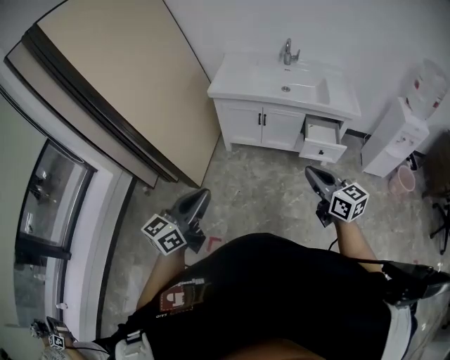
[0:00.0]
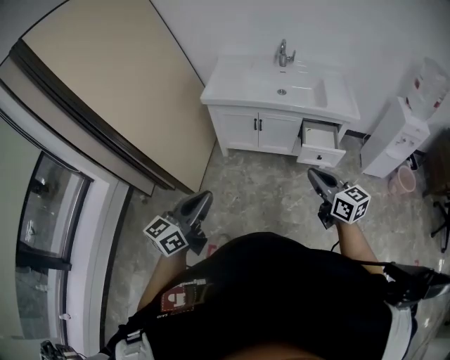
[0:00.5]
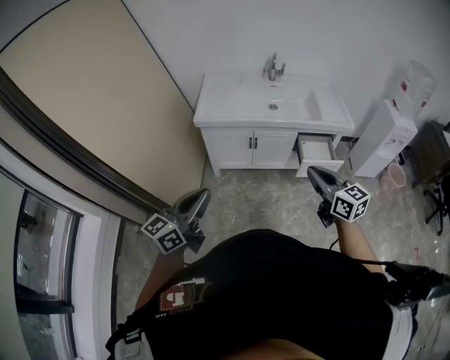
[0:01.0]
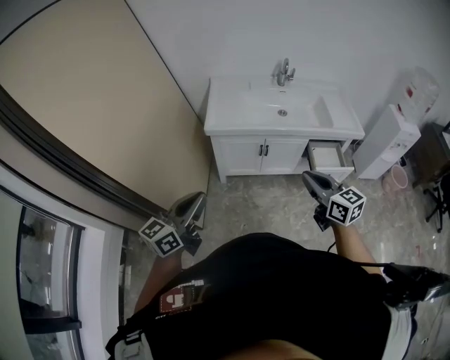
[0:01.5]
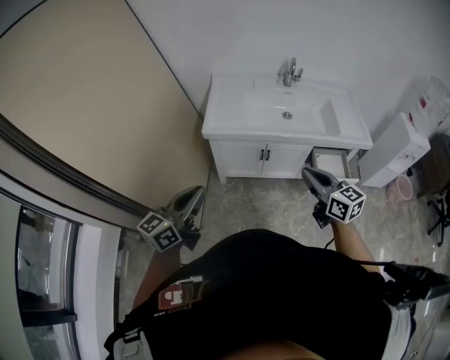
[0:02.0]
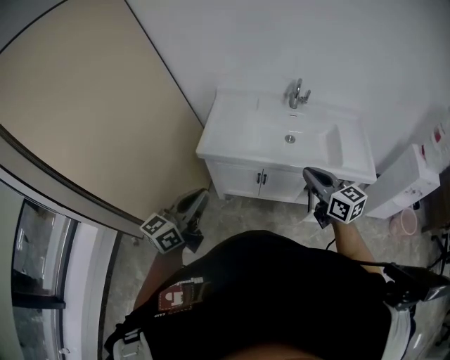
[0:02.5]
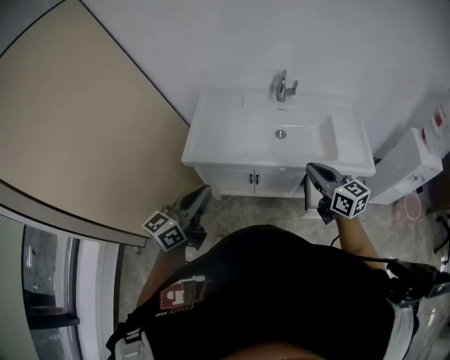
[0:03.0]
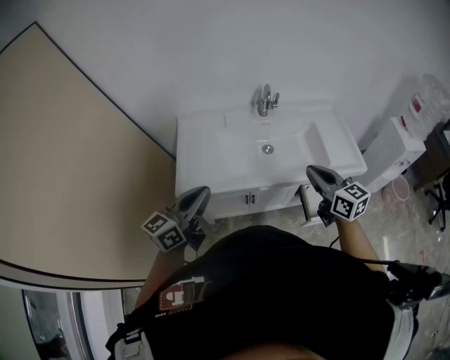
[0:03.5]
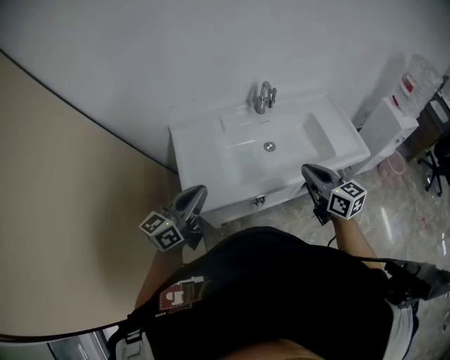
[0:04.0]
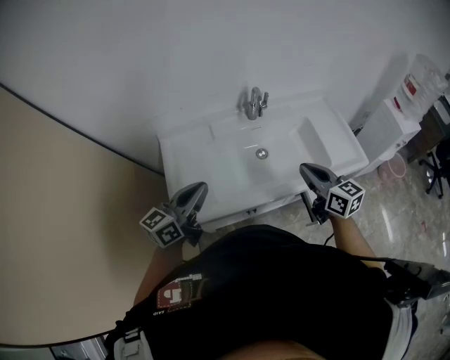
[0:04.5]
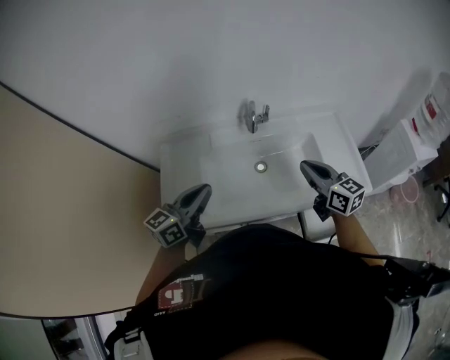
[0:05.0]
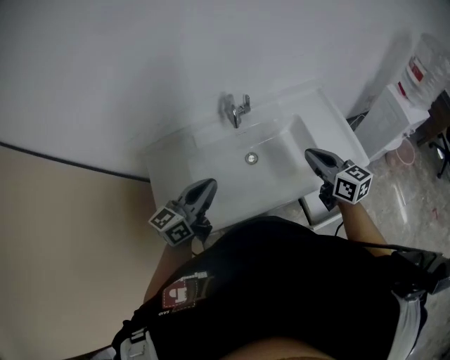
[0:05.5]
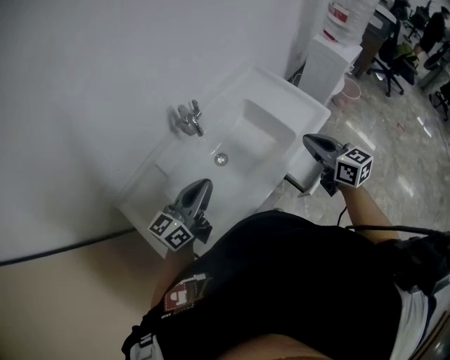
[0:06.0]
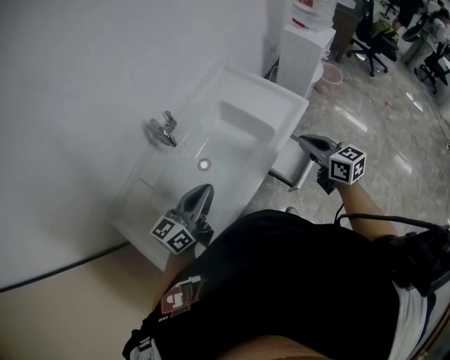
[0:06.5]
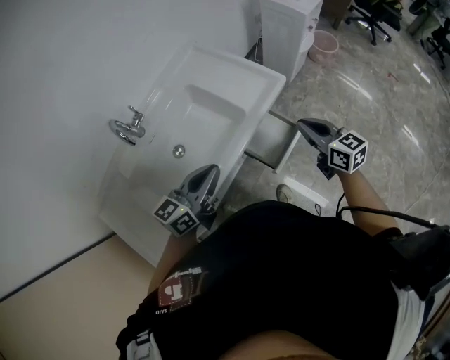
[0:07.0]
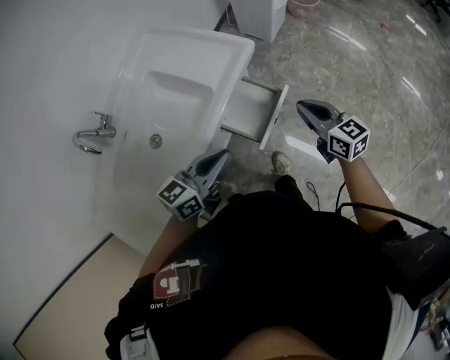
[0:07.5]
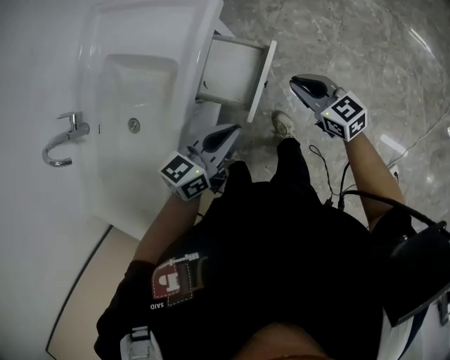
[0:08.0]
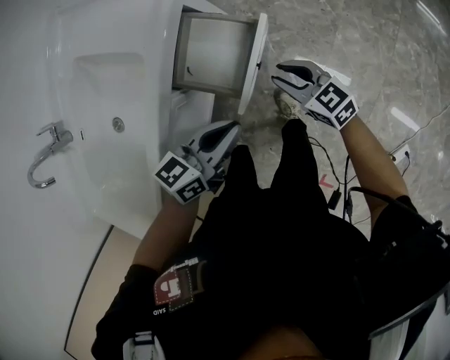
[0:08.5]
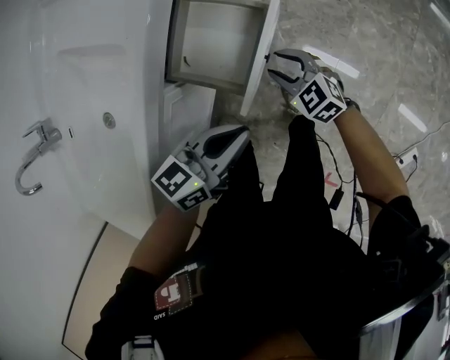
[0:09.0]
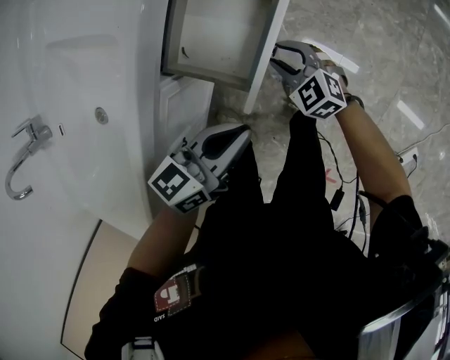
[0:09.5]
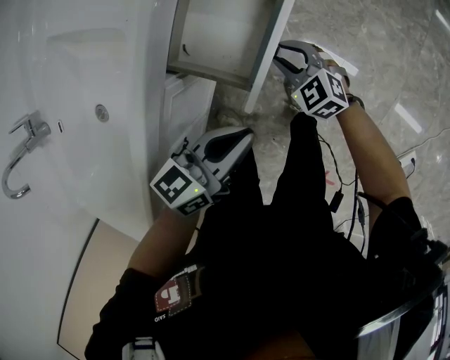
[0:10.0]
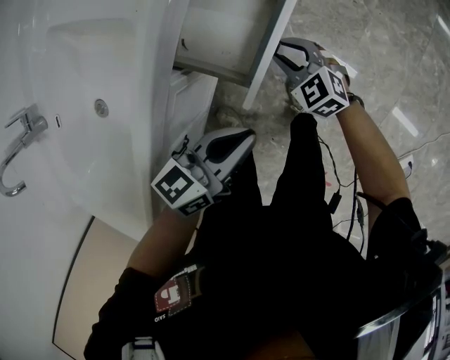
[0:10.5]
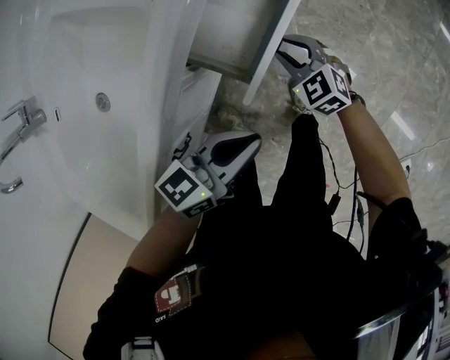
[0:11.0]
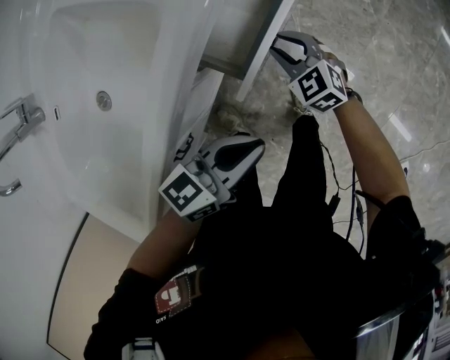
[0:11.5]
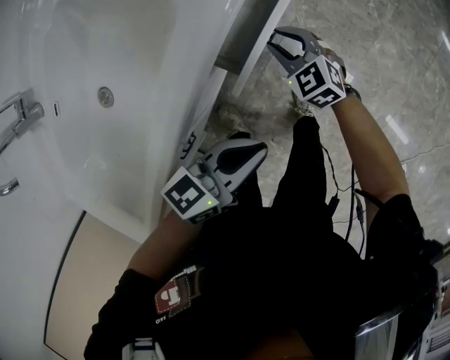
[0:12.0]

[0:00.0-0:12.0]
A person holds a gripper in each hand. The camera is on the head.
0:00.0 to 0:02.0: Both grippers travel together forward and to the left, roughly 35 cm.
0:02.0 to 0:04.0: The left gripper changes place by about 40 cm, and swivels about 20 degrees. The right gripper ends up about 35 cm from where it was.
0:04.0 to 0:06.0: The right gripper shifts by approximately 25 cm, and changes its angle by about 30 degrees. The left gripper moves roughly 30 cm, and changes its angle by about 30 degrees.
0:06.0 to 0:08.0: Both grippers travel together to the right and downward, some 50 cm. The left gripper swivels approximately 40 degrees.
0:08.0 to 0:10.0: The right gripper is displaced downward by some 25 cm, changes its angle by about 30 degrees, and opens; the left gripper shifts approximately 15 cm downward.
0:10.0 to 0:12.0: The left gripper goes some 5 cm to the left, while the right gripper moves to the left, approximately 10 cm.

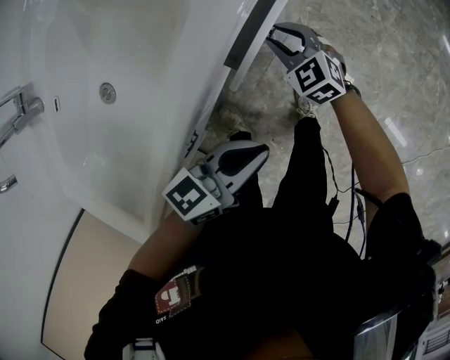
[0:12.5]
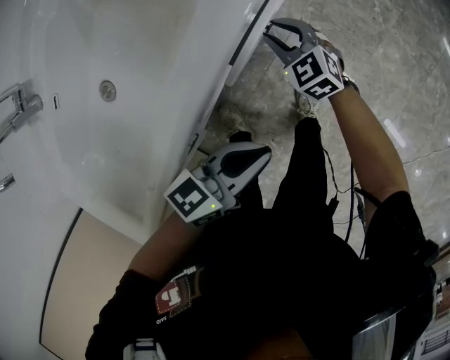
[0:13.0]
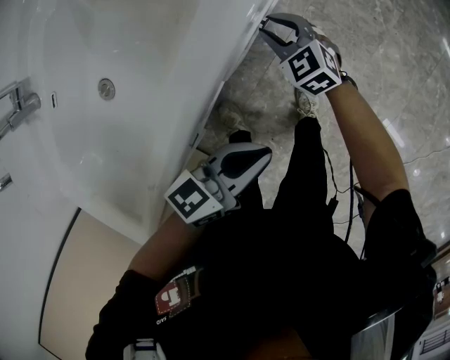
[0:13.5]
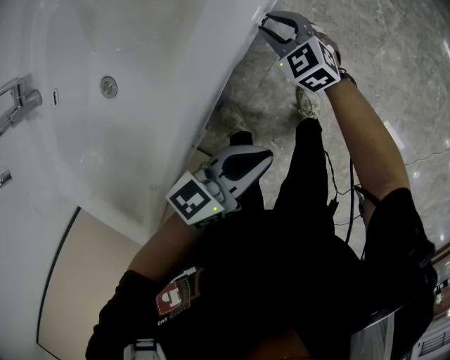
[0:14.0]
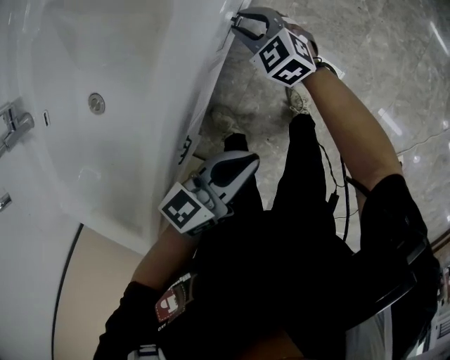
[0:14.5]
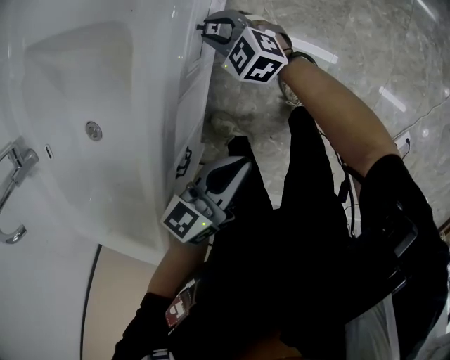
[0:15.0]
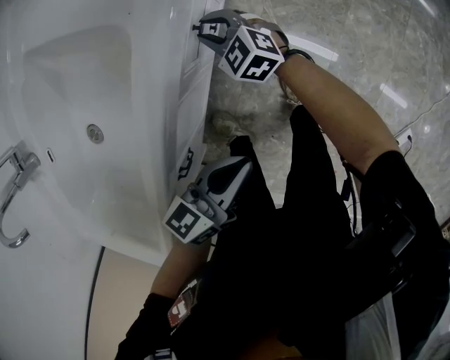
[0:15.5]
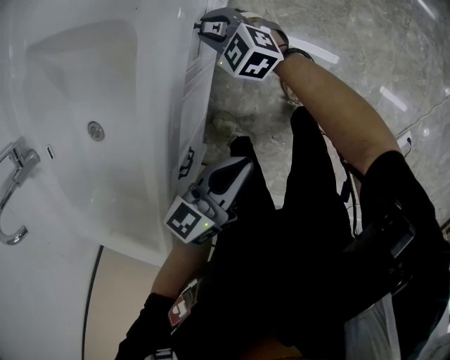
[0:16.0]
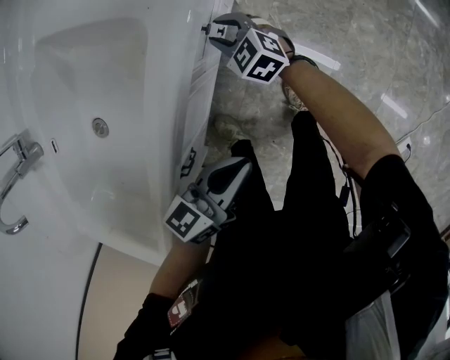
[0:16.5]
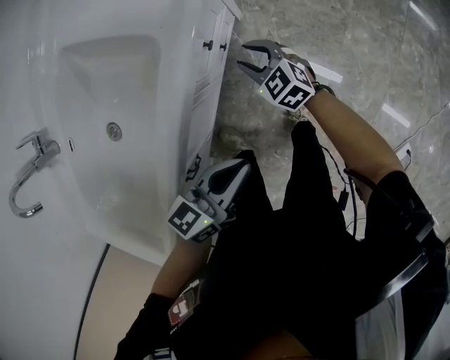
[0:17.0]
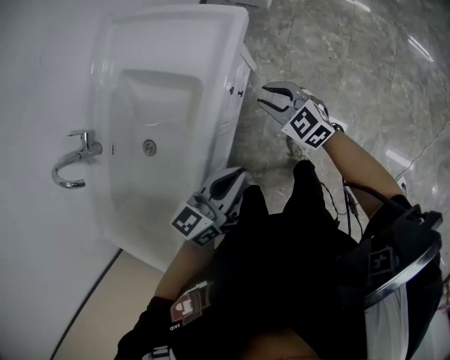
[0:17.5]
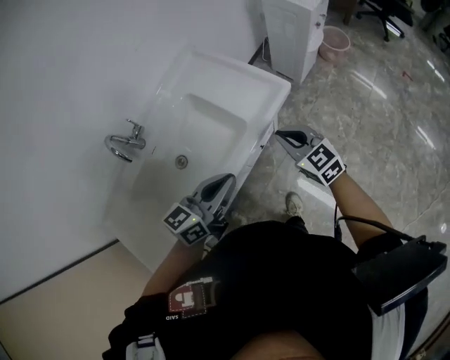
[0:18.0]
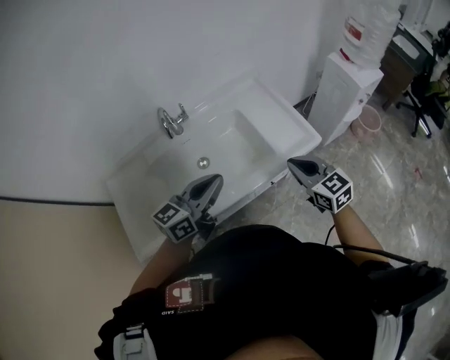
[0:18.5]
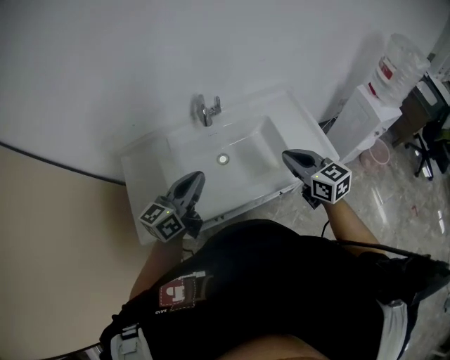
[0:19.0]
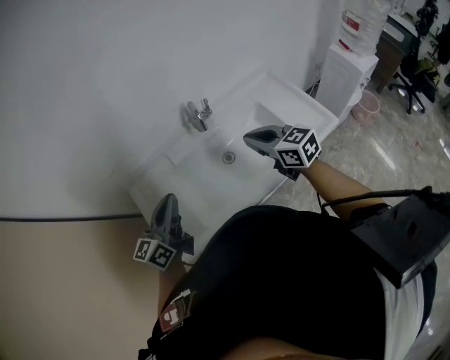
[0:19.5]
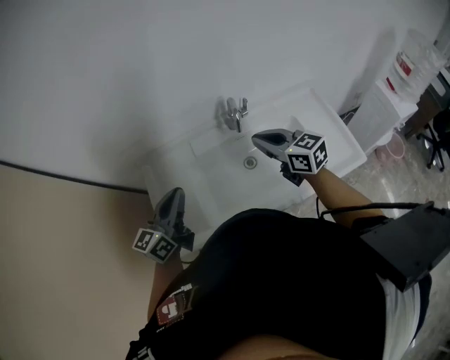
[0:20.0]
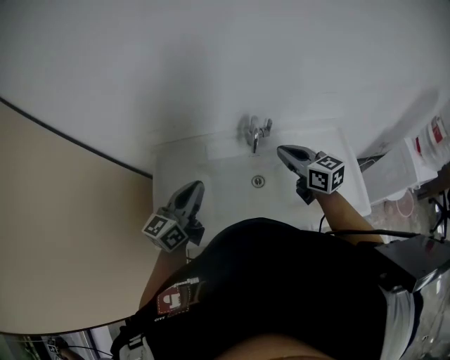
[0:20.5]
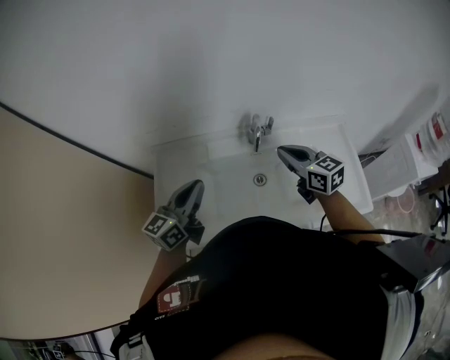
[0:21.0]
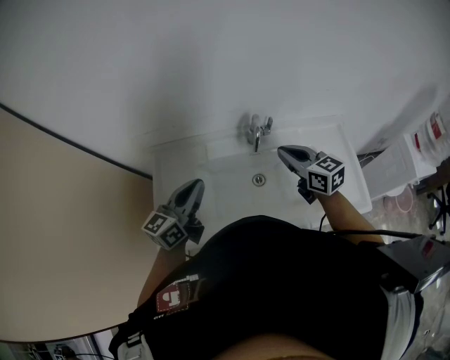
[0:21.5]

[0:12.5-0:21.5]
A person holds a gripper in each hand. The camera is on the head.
0:12.5 to 0:14.5: The right gripper moves some 5 cm.
0:14.5 to 0:17.0: The right gripper shifts roughly 5 cm to the right.
0:17.0 to 0:19.5: The right gripper travels upward by approximately 50 cm, swivels about 40 degrees, and closes its fingers. The left gripper changes place by some 60 cm, and turns by roughly 70 degrees.
0:19.5 to 0:21.5: The left gripper heads forward, covering some 5 cm. Meanwhile the right gripper goes some 15 cm forward.

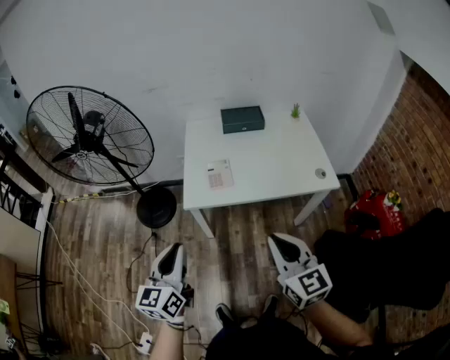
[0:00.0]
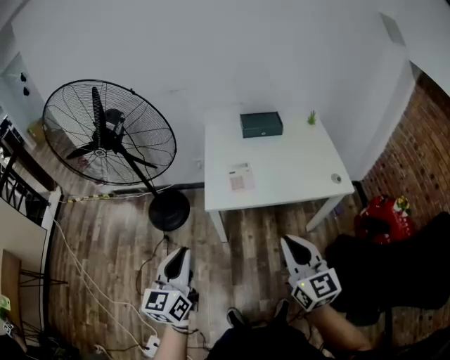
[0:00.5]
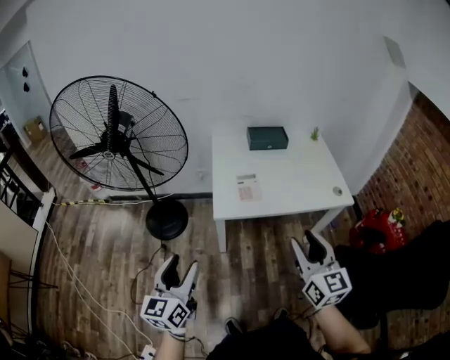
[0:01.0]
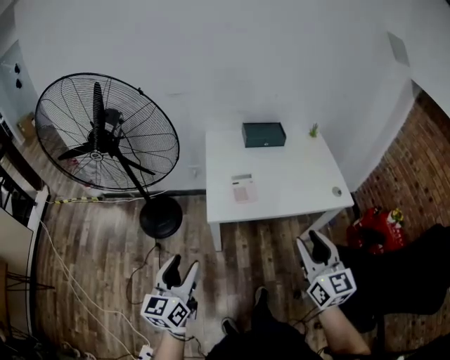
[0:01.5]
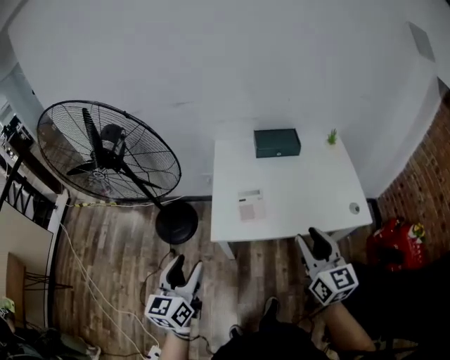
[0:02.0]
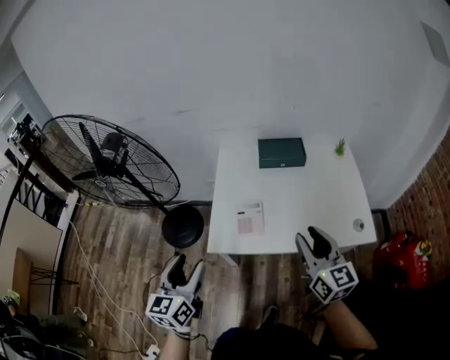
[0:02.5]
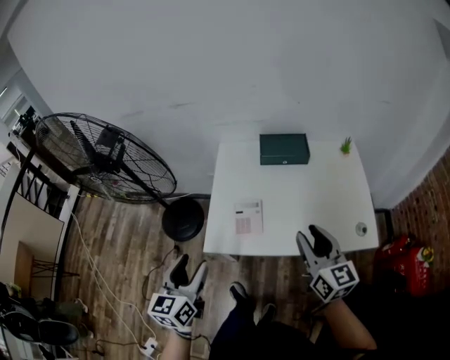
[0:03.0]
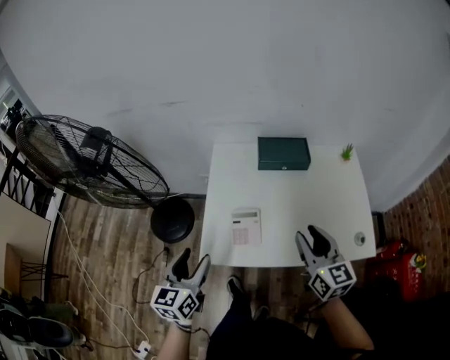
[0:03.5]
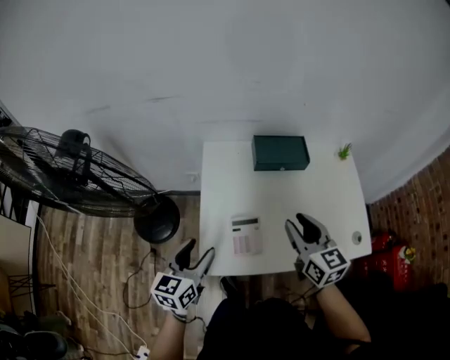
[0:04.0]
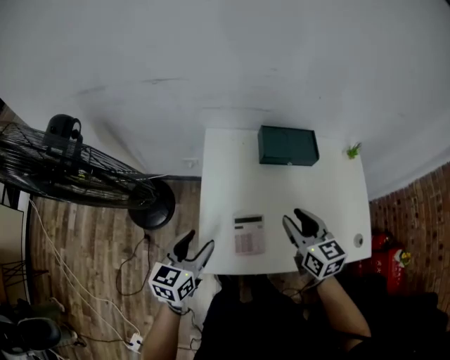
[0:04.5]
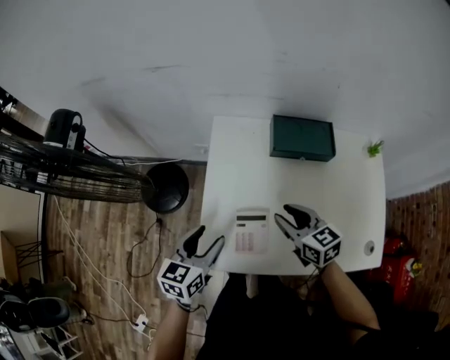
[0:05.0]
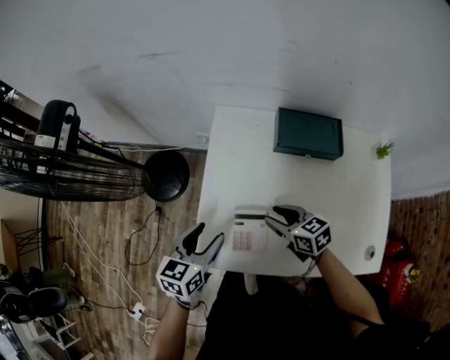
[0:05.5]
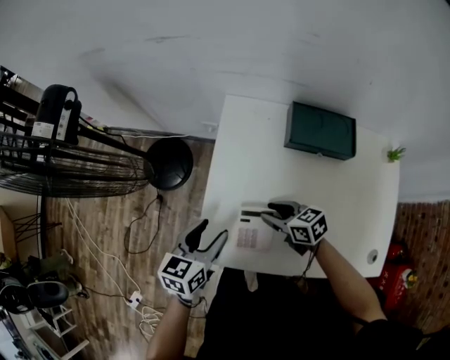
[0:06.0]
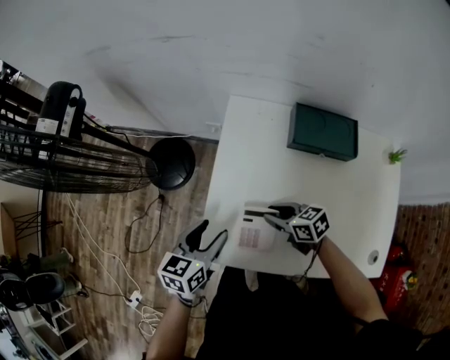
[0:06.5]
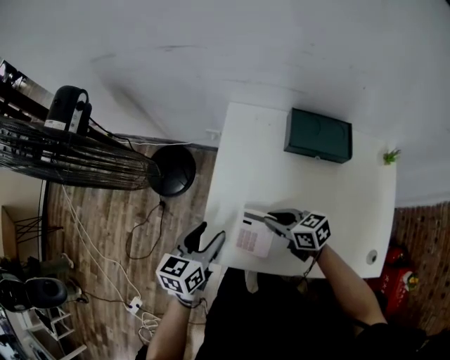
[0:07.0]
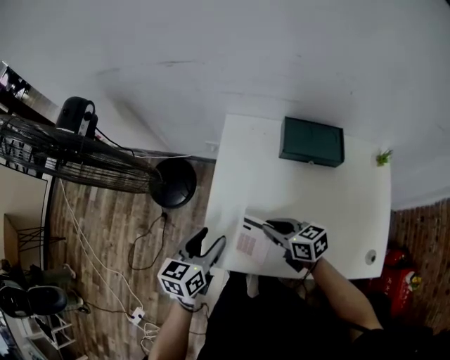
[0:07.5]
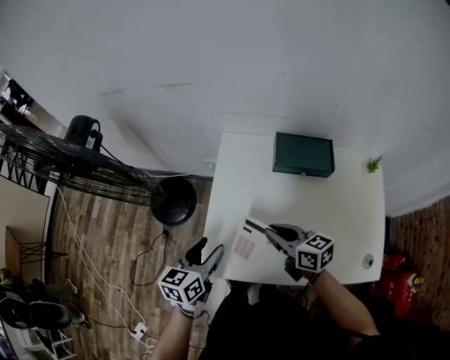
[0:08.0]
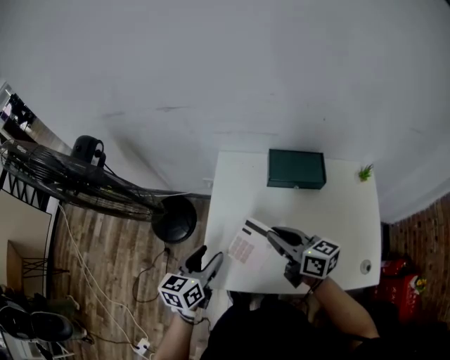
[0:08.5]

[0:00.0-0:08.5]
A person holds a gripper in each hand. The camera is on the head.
0:00.0 to 0:02.0: The left gripper is displaced forward and to the left by roughly 15 cm, and opens up. The right gripper moves forward, approximately 20 cm, and opens.
0:02.0 to 0:04.0: Both grippers travel together forward, about 30 cm.
0:04.0 to 0:06.5: The left gripper is displaced downward by some 10 cm; the right gripper shifts about 25 cm downward, and swivels about 60 degrees.
0:06.5 to 0:08.5: The left gripper heads upward, covering about 10 cm, while the right gripper shifts roughly 20 cm upward, and rotates roughly 40 degrees.
